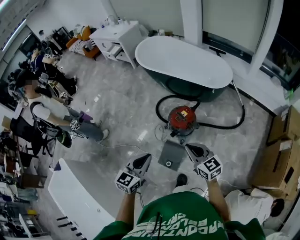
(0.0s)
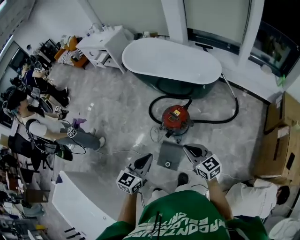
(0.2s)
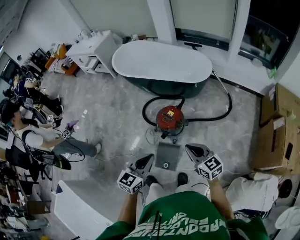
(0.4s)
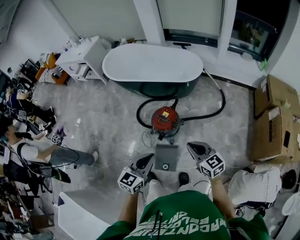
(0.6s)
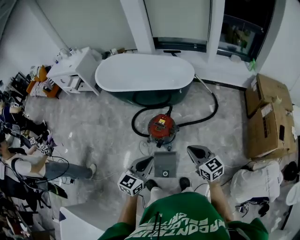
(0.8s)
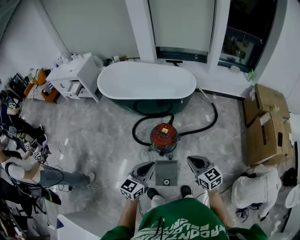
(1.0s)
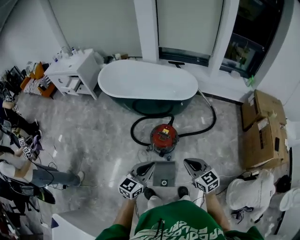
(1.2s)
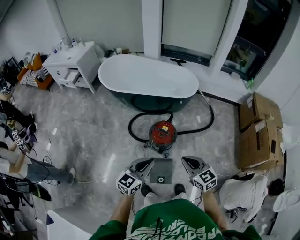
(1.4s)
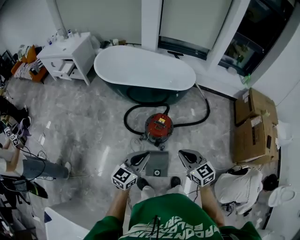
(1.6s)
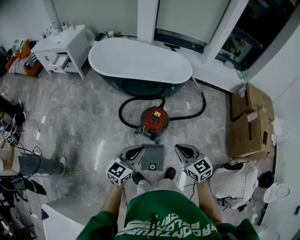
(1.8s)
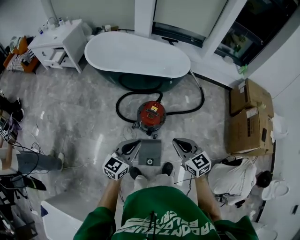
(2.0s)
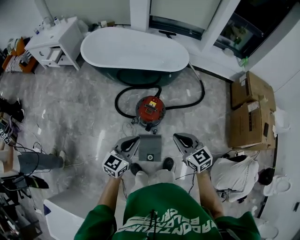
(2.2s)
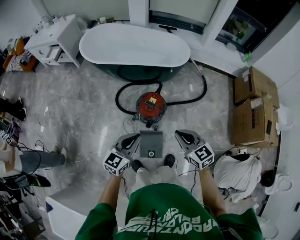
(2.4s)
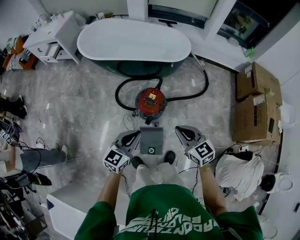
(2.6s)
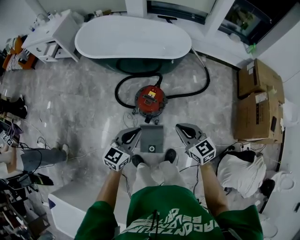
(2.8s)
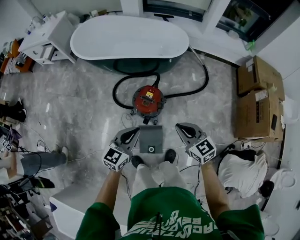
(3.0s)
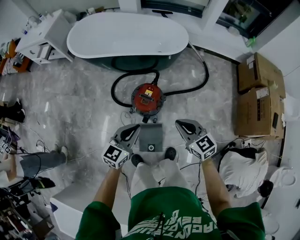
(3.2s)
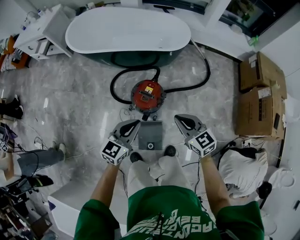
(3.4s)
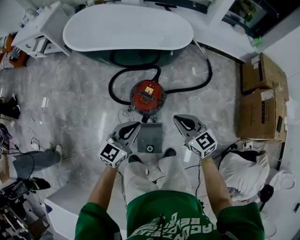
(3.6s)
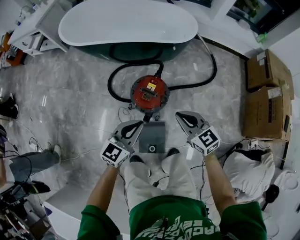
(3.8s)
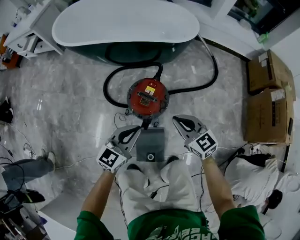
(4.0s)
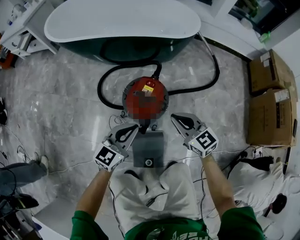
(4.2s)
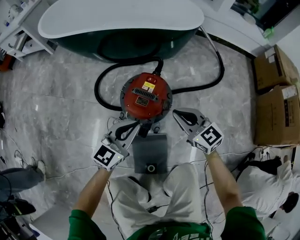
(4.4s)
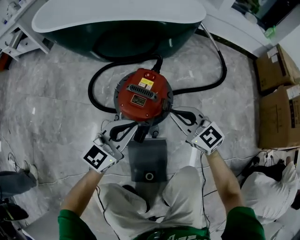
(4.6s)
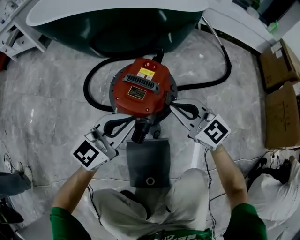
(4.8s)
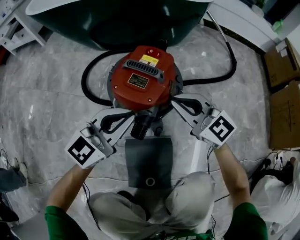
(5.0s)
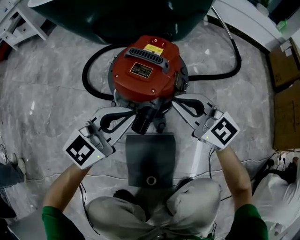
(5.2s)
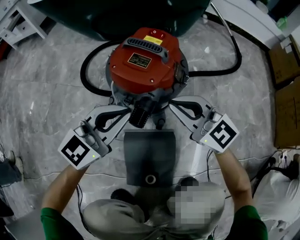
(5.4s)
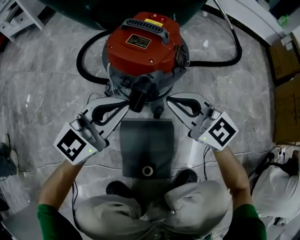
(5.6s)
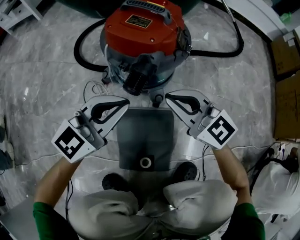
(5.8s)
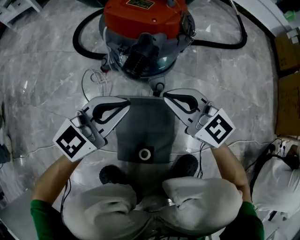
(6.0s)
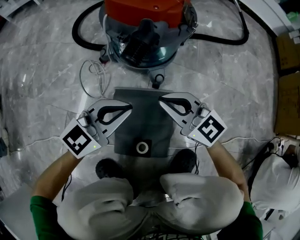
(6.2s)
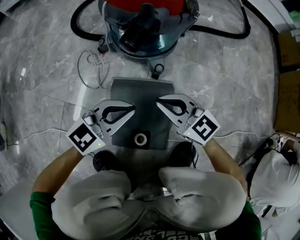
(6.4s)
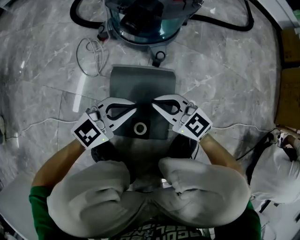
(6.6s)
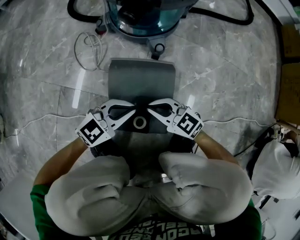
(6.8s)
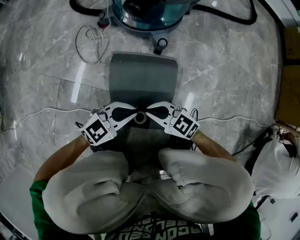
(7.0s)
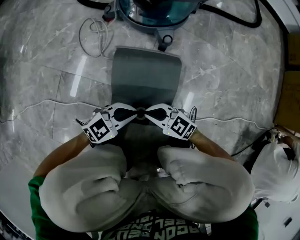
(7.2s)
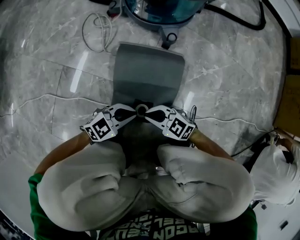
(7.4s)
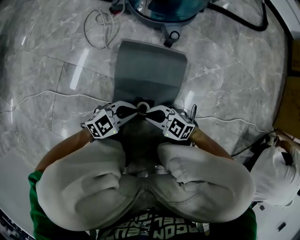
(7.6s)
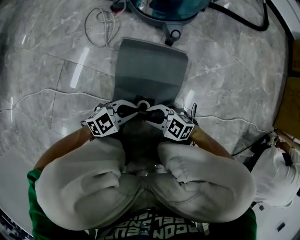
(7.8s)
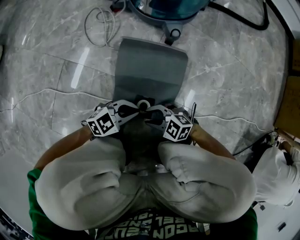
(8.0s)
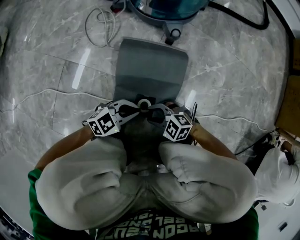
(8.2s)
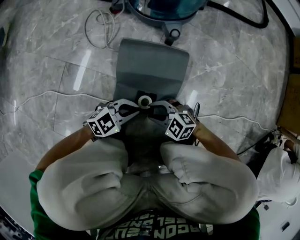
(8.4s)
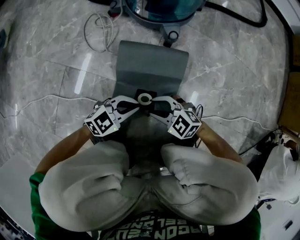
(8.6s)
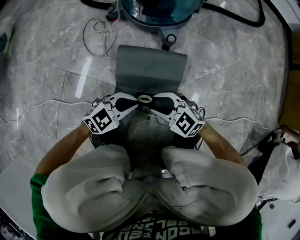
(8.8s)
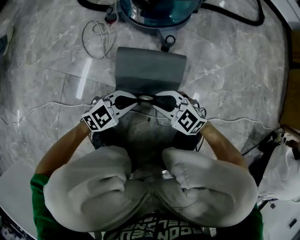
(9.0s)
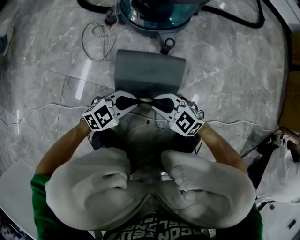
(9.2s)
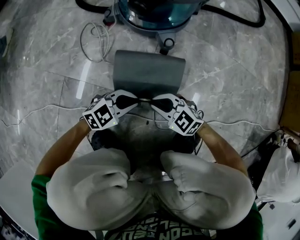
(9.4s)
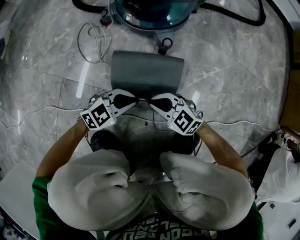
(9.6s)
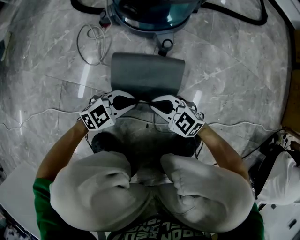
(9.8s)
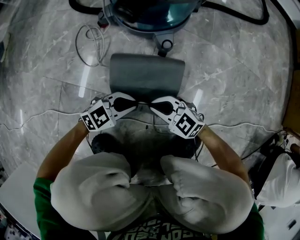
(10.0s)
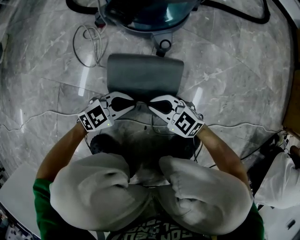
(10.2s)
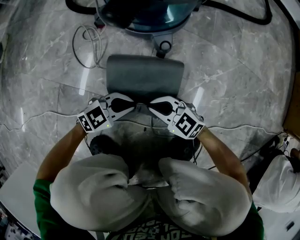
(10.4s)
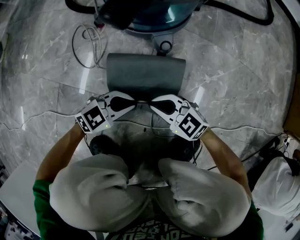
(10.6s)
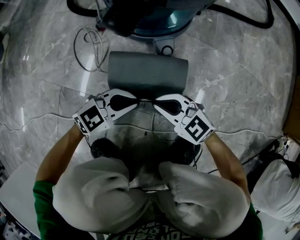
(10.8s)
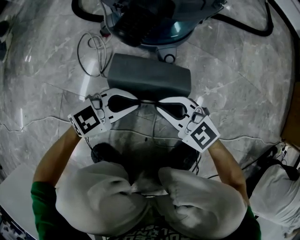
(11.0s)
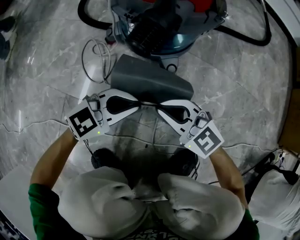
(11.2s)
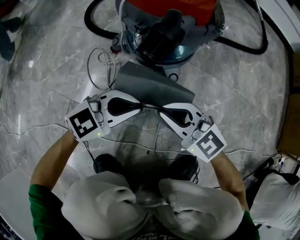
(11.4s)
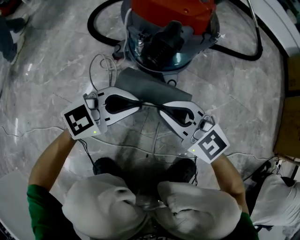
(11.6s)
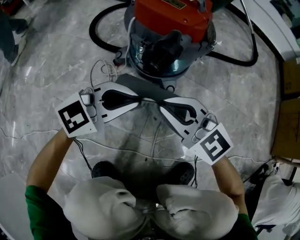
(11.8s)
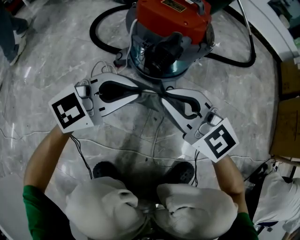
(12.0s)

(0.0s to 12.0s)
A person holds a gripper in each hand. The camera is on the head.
0.0s - 1.6s: The left gripper ends up approximately 15 cm from where it was, and turns by some 30 degrees; the right gripper ends up about 15 cm from where it was, and swivels about 30 degrees.
1.6s - 3.0s: The left gripper is displaced forward, to the right and downward by some 15 cm. Meanwhile the right gripper goes roughly 15 cm to the right, forward and downward.
3.0s - 4.4s: Both grippers move downward, approximately 40 cm.
4.4s - 6.0s: The two grippers go some 30 cm downward and backward.
6.0s - 7.6s: The right gripper ends up about 40 cm from where it was, and rotates some 40 degrees. Meanwhile the left gripper shifts some 25 cm downward, and rotates roughly 20 degrees.
7.6s - 9.0s: The left gripper moves about 10 cm; the right gripper changes place by about 10 cm, and opens its fingers.
9.0s - 10.4s: The right gripper closes up.
10.4s - 12.0s: The grippers both shift upward by approximately 25 cm. The left gripper swivels roughly 30 degrees; the right gripper changes its angle by approximately 30 degrees.

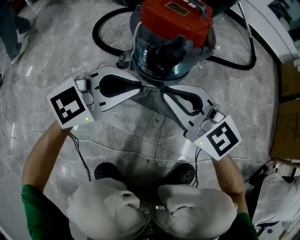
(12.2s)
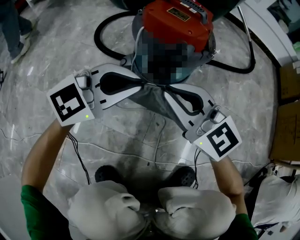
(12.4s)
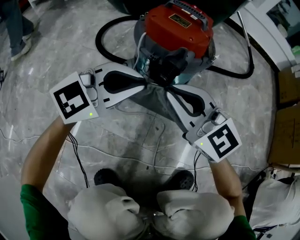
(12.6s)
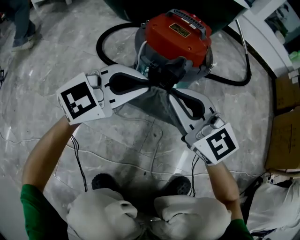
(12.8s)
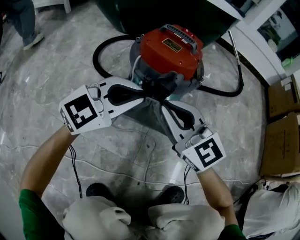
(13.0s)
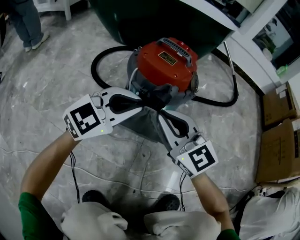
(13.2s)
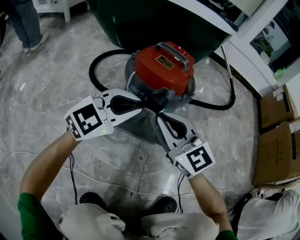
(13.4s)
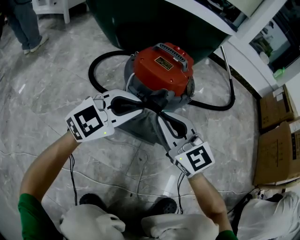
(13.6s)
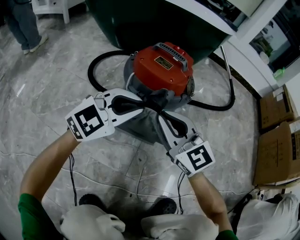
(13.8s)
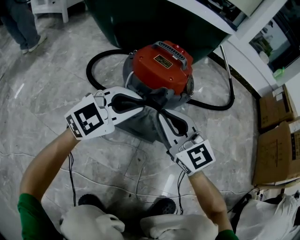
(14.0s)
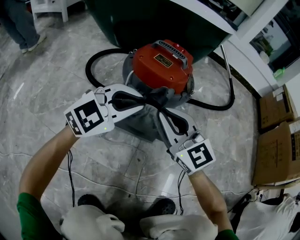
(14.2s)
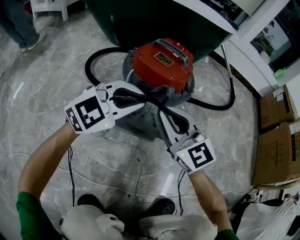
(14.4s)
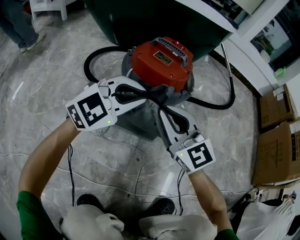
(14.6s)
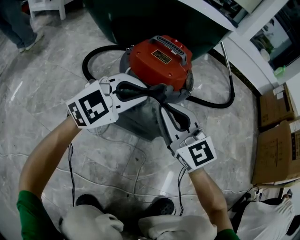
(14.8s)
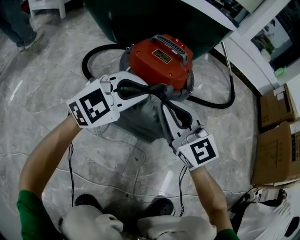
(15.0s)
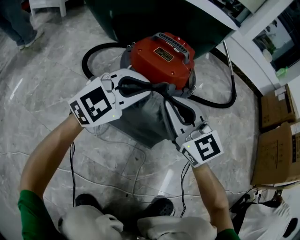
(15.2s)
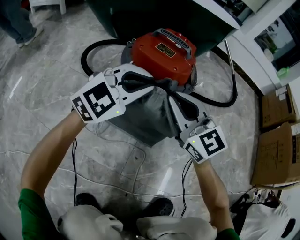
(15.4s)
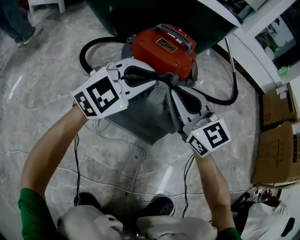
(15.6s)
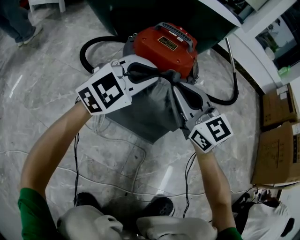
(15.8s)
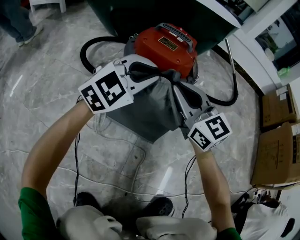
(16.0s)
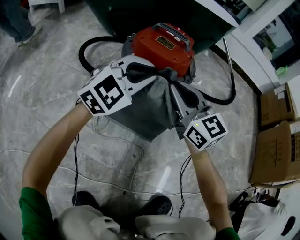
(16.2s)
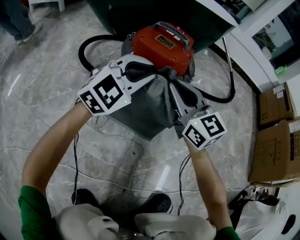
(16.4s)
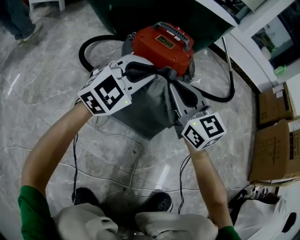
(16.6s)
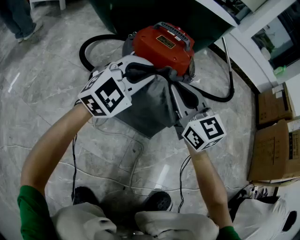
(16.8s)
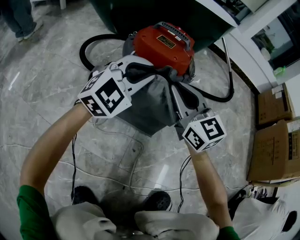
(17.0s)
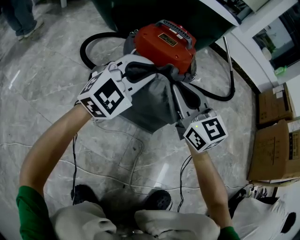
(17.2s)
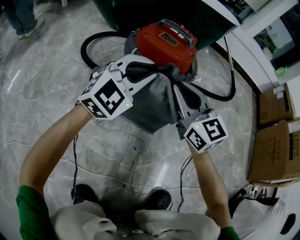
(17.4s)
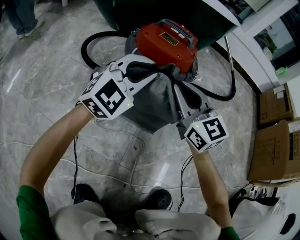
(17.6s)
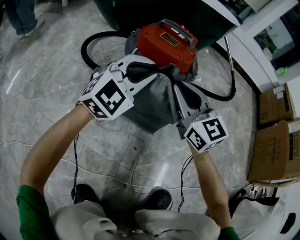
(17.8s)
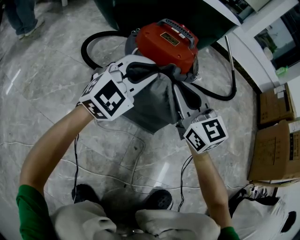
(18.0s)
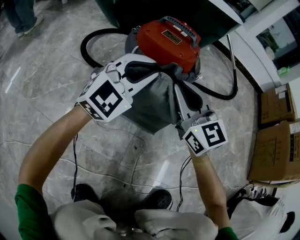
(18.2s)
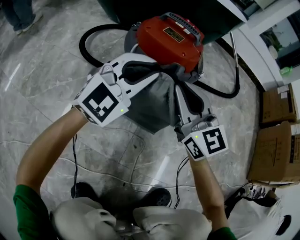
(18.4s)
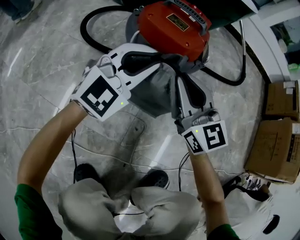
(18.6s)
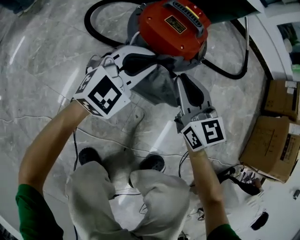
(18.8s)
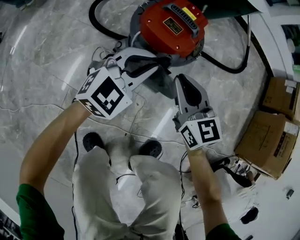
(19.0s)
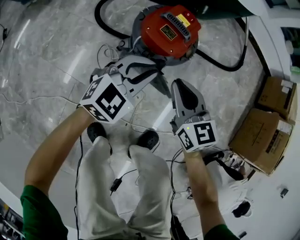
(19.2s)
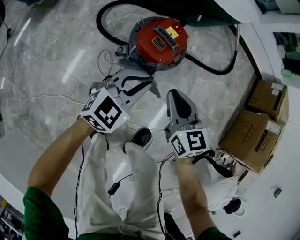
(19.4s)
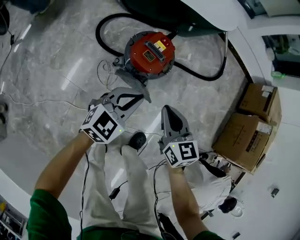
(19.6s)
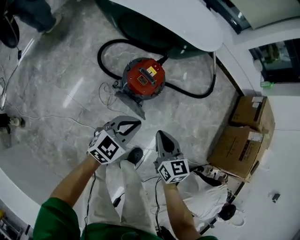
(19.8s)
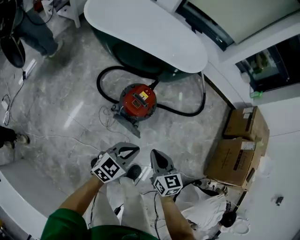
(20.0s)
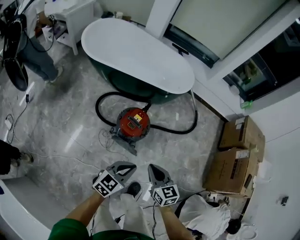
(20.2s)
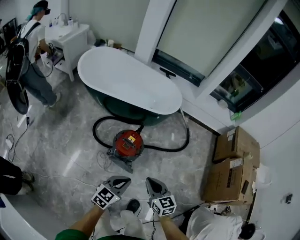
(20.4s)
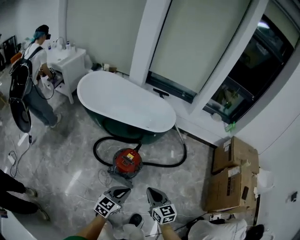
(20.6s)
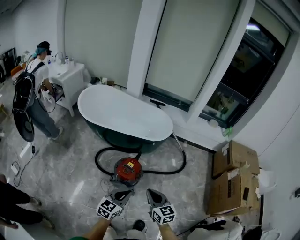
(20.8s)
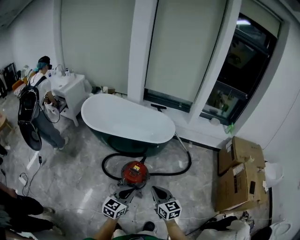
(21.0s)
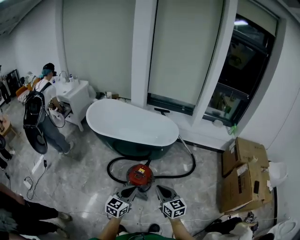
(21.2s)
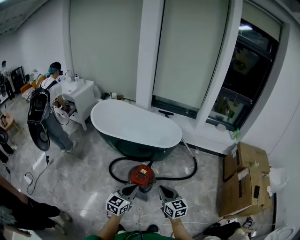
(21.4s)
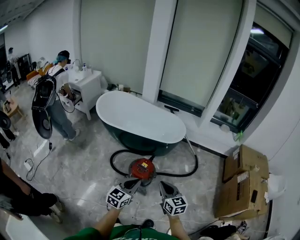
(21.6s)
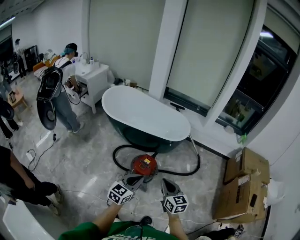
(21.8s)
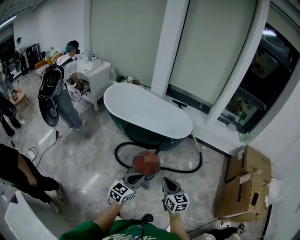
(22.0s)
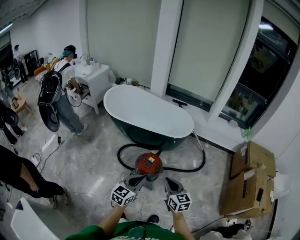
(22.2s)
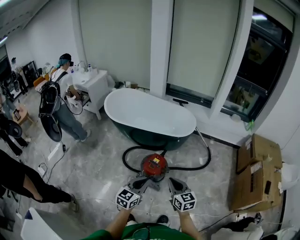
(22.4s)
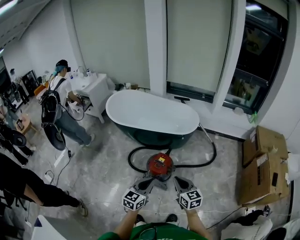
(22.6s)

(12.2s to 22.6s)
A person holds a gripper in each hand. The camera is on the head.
12.2s - 13.6s: The grippers both shift forward by roughly 5 cm.
13.6s - 15.2s: Both grippers travel together forward, approximately 5 cm.
15.2s - 18.2s: The grippers stay close to where they were, moving slightly.
18.2s - 19.6s: The grippers both shift upward by approximately 30 cm. The right gripper rotates roughly 30 degrees. The left gripper rotates about 40 degrees.
19.6s - 21.2s: Both grippers move upward, approximately 40 cm.
21.2s - 22.6s: The grippers make only small movements.

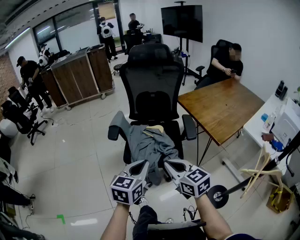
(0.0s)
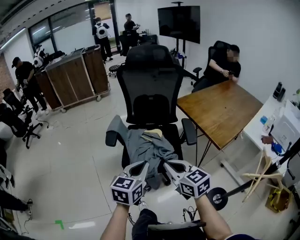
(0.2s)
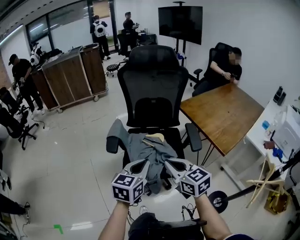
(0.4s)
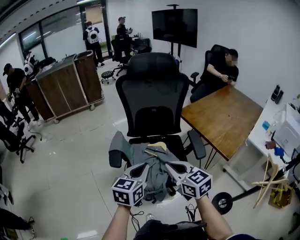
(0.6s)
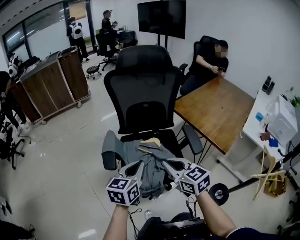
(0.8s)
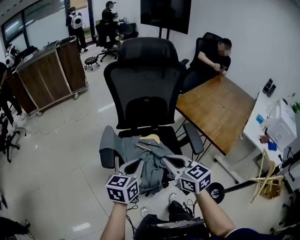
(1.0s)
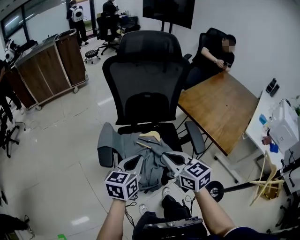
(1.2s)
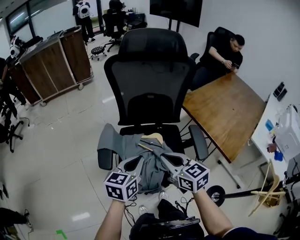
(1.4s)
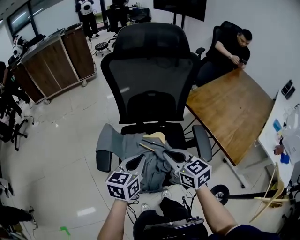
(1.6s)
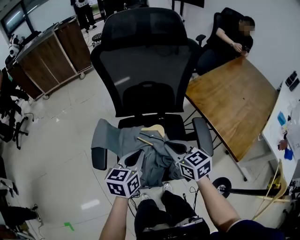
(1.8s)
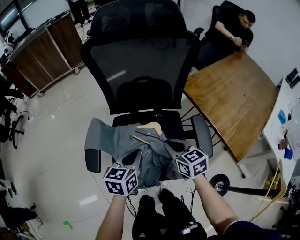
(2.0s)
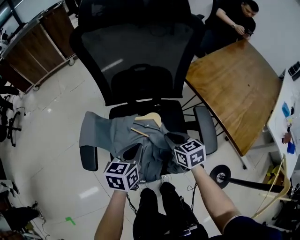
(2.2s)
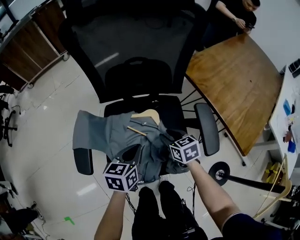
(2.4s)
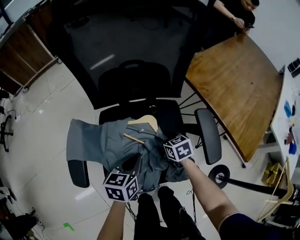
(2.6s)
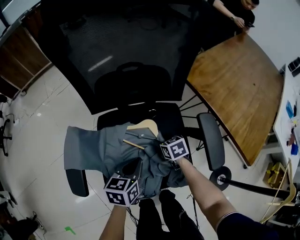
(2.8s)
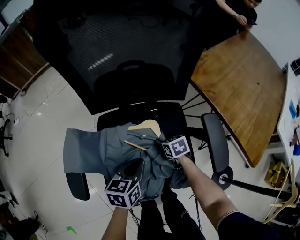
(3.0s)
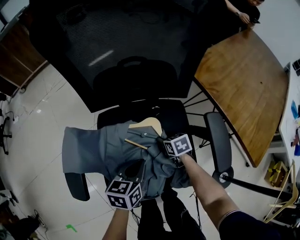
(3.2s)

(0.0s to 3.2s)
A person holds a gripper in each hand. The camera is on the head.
0.0s - 1.6s: The grippers both shift forward by some 30 cm.
1.6s - 3.2s: The right gripper shifts roughly 40 cm downward, angles its fingers downward, by roughly 40 degrees, and opens up. Meanwhile the left gripper shifts roughly 20 cm downward.
